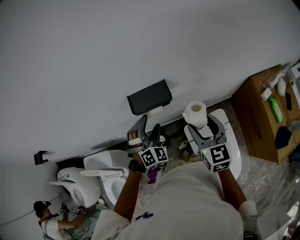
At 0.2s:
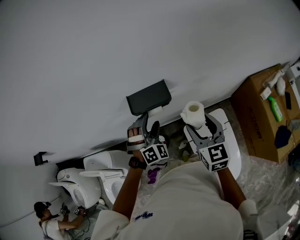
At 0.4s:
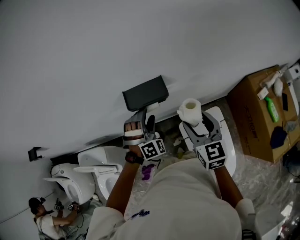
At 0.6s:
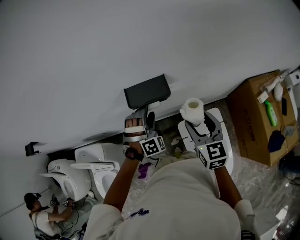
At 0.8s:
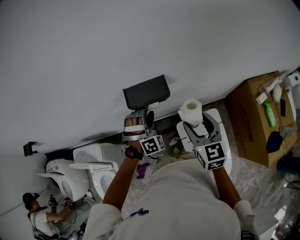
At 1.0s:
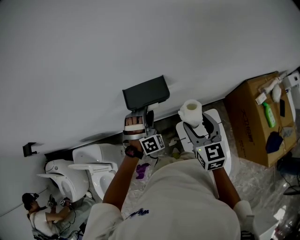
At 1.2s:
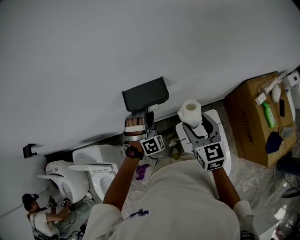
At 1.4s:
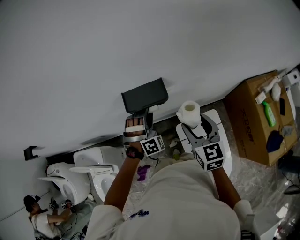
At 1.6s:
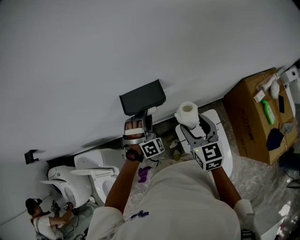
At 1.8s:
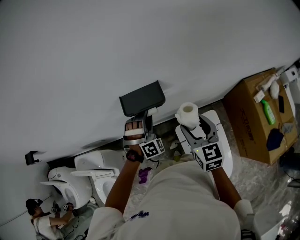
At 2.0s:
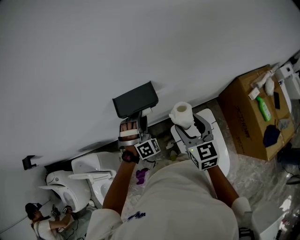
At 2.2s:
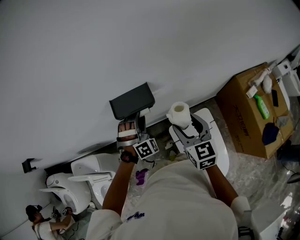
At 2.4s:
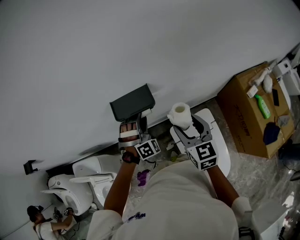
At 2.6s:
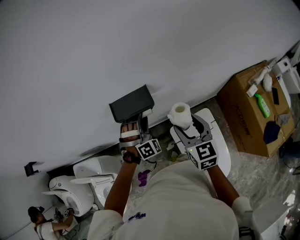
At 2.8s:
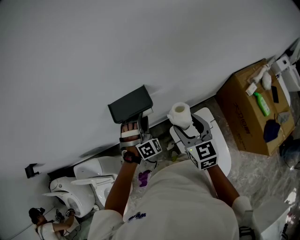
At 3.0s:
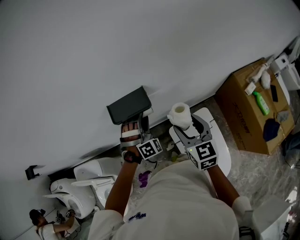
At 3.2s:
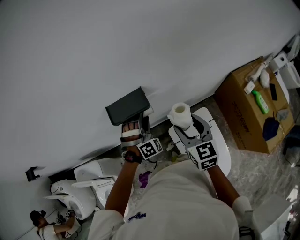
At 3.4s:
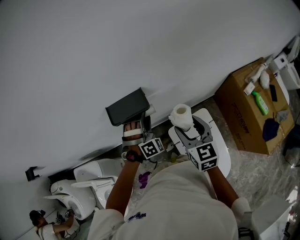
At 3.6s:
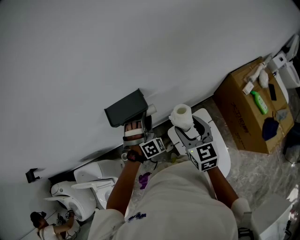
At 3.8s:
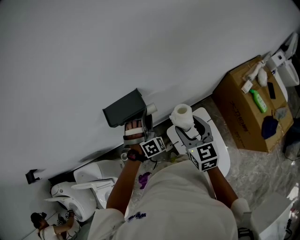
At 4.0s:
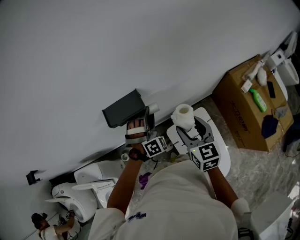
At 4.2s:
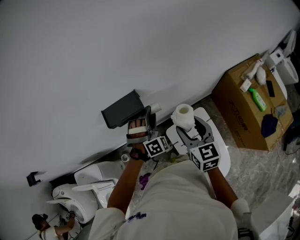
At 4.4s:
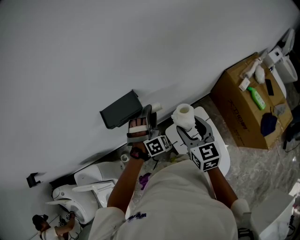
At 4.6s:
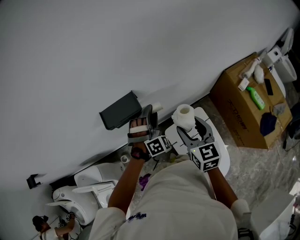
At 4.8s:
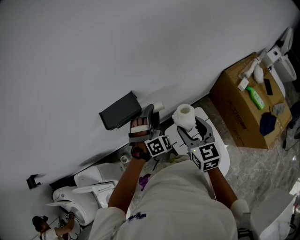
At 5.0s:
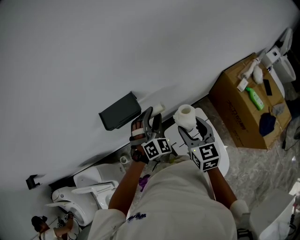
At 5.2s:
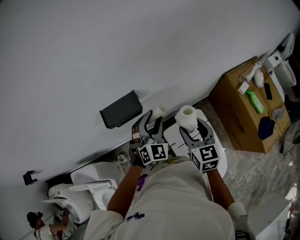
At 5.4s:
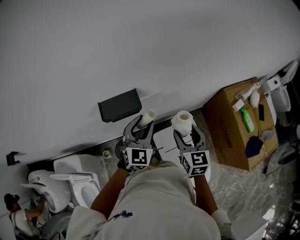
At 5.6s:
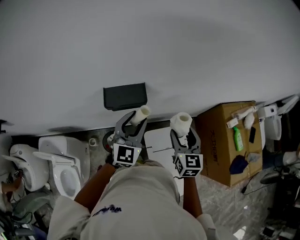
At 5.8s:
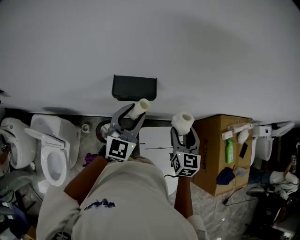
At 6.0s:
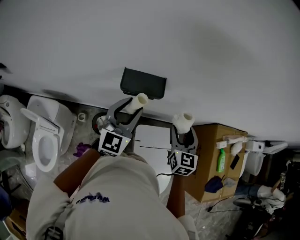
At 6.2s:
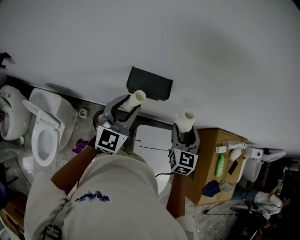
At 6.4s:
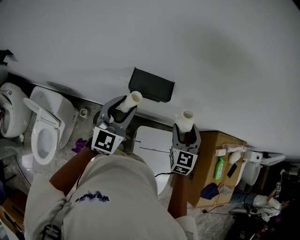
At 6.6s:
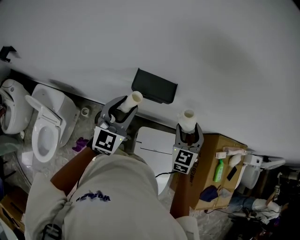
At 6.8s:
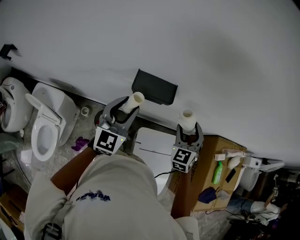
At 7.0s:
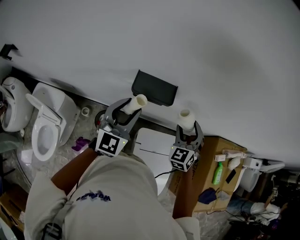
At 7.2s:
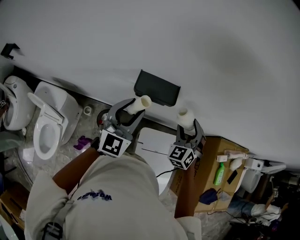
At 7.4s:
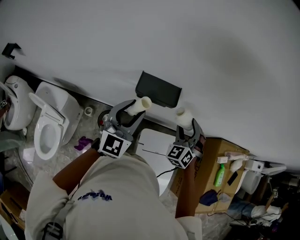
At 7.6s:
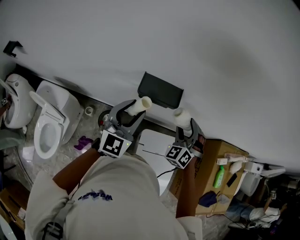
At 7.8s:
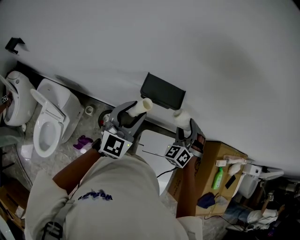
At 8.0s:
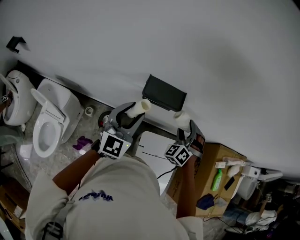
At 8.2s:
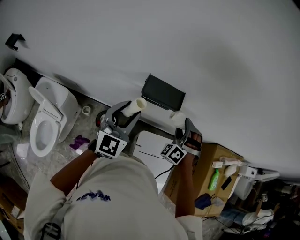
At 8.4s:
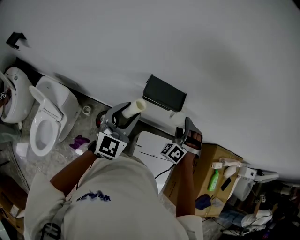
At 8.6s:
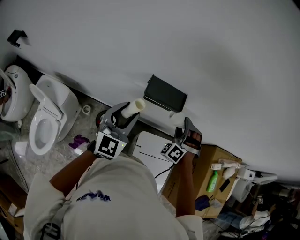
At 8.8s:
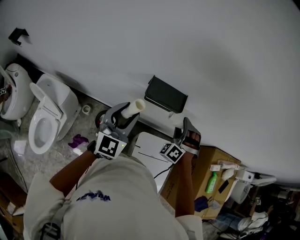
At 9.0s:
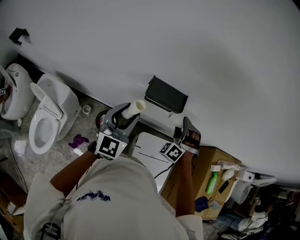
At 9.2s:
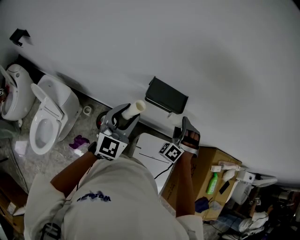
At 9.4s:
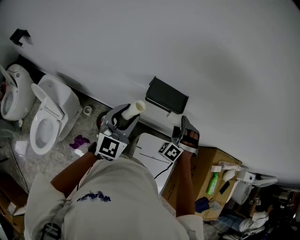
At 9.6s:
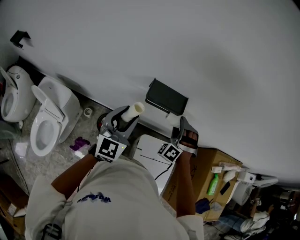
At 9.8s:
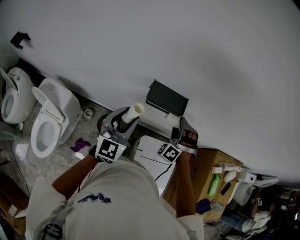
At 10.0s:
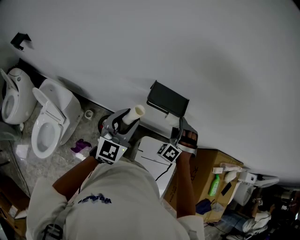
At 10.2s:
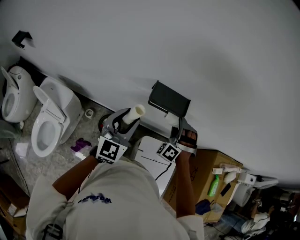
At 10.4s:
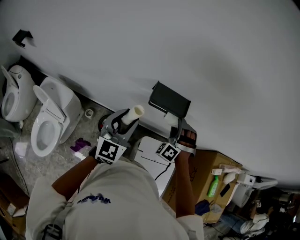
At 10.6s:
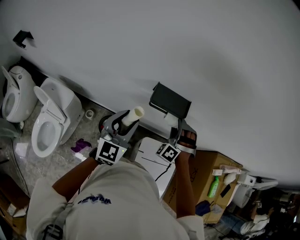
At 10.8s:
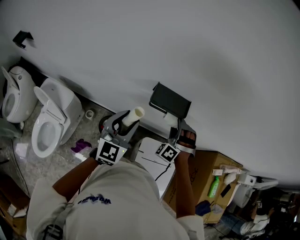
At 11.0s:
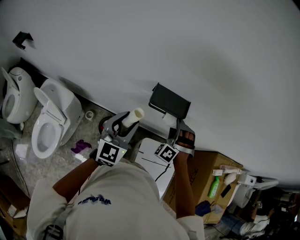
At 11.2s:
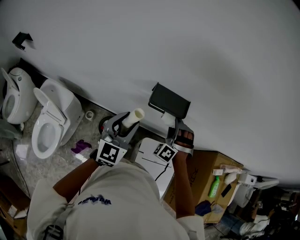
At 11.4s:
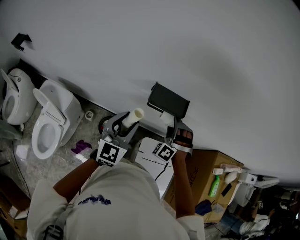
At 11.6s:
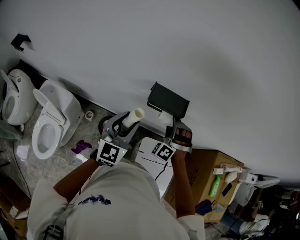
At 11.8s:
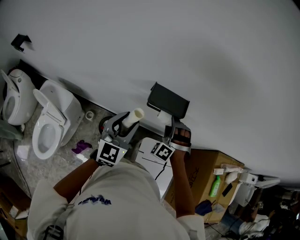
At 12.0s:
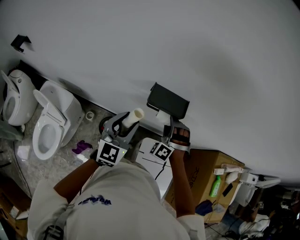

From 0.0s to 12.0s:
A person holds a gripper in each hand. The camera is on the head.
From 0.0s to 1.6s: The left gripper swivels about 20 degrees, and closes.
From 1.6s to 3.0s: There are only small adjustments of the grippers.
From 3.0s to 4.4s: The left gripper goes approximately 10 cm to the right.
From 4.4s to 6.0s: The left gripper heads to the left, upward and backward, covering roughly 15 cm, and rotates around the line of its fingers by some 70 degrees, counterclockwise from behind.
From 6.0s to 7.6s: The right gripper is displaced forward by some 5 cm, and rotates around the line of its fingers by some 60 degrees, counterclockwise from behind.
From 7.6s to 9.0s: The right gripper rotates about 30 degrees.
From 9.0s to 10.4s: There are only small adjustments of the grippers.
From 10.4s to 12.0s: There are only small adjustments of the grippers.

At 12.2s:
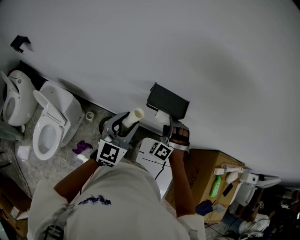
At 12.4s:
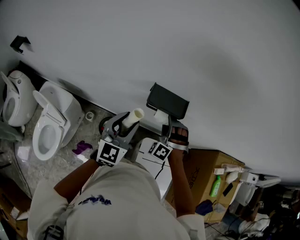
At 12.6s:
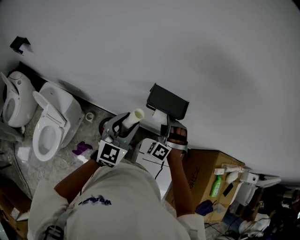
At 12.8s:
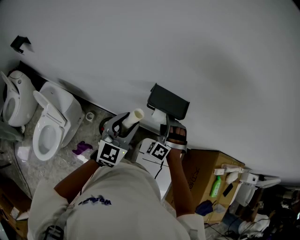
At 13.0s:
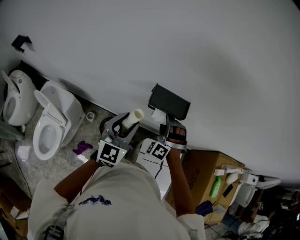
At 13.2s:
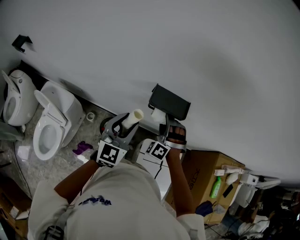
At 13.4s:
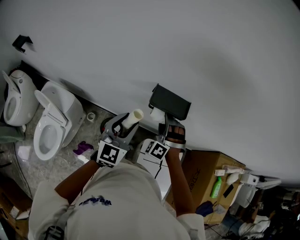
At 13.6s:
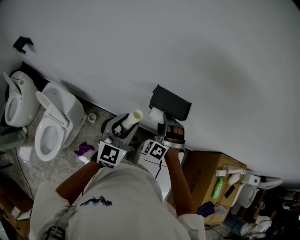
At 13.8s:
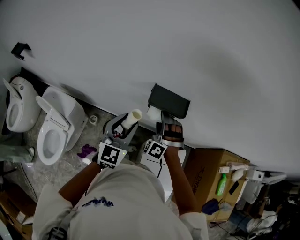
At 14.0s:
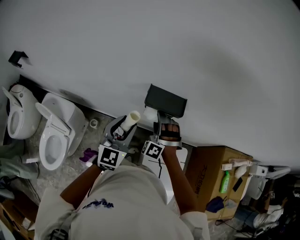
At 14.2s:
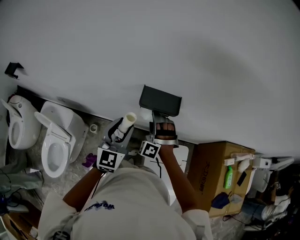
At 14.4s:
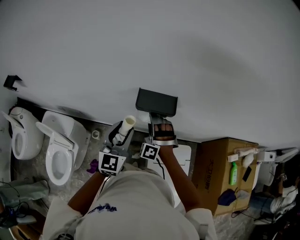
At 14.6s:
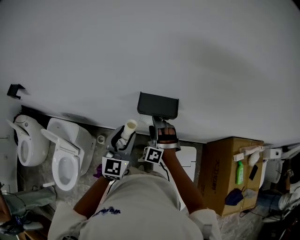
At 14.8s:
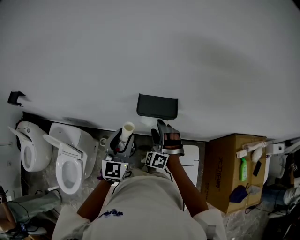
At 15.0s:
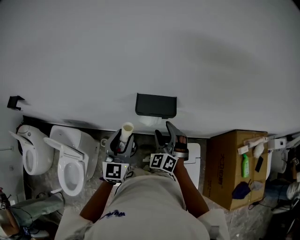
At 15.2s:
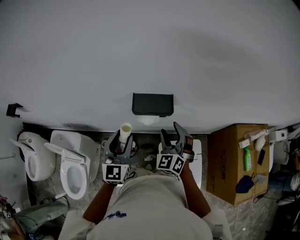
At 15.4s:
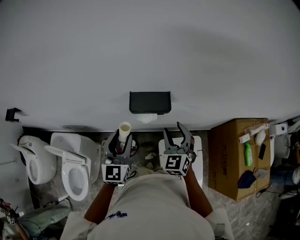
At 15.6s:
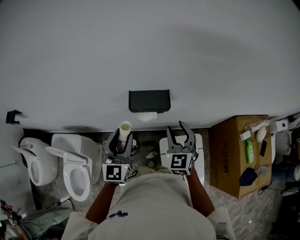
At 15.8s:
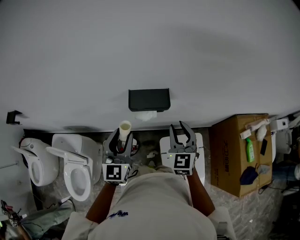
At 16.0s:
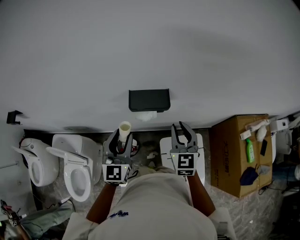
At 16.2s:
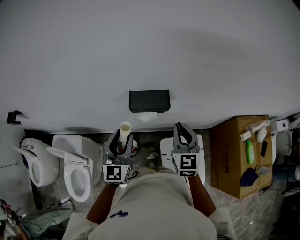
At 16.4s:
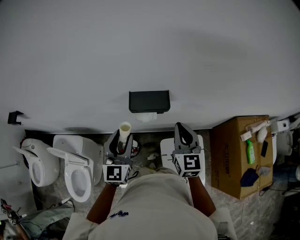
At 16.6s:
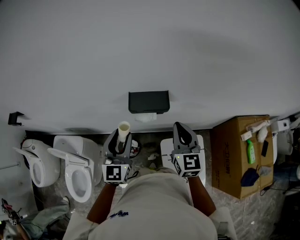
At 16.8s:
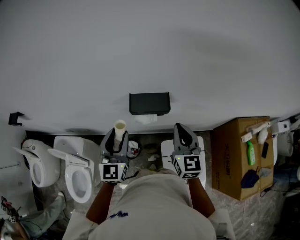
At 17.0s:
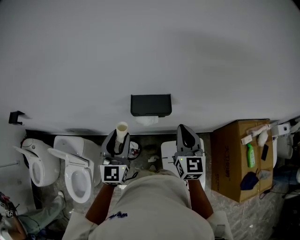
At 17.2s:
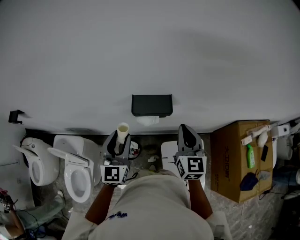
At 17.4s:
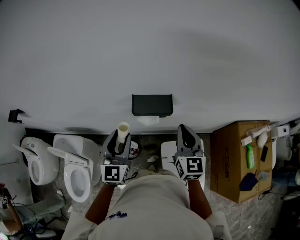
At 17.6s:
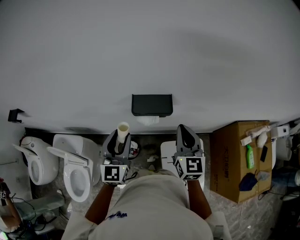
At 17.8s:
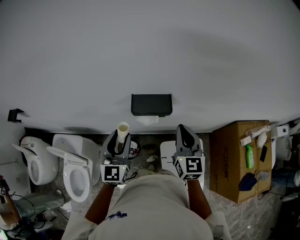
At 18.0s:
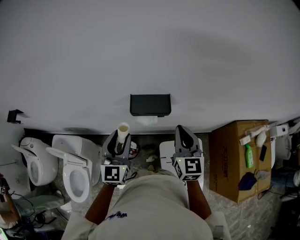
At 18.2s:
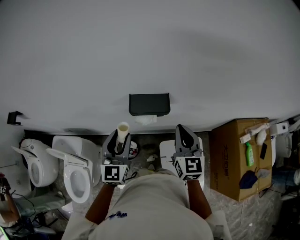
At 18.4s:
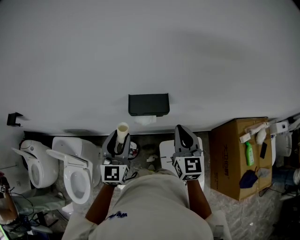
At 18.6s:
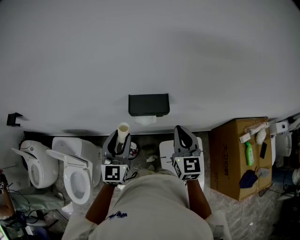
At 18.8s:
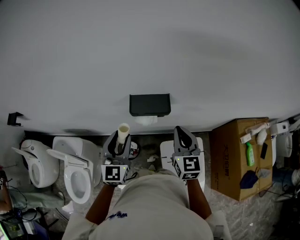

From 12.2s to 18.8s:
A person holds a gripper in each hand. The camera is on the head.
From 12.2s to 13.8s: The right gripper goes roughly 5 cm to the left.
From 13.8s to 15.4s: The right gripper is displaced to the right and upward by roughly 10 cm, and twists about 60 degrees clockwise, seen from behind.
From 15.4s to 17.2s: The right gripper travels upward by roughly 5 cm, changes its angle by about 30 degrees, and closes.
From 17.2s to 18.8s: The grippers stay close to where they were, moving slightly.

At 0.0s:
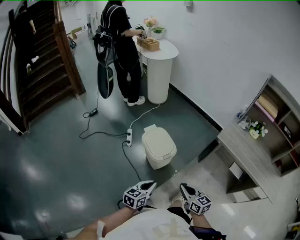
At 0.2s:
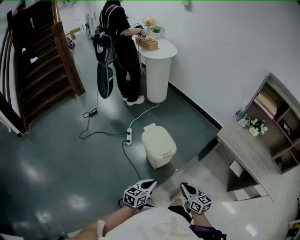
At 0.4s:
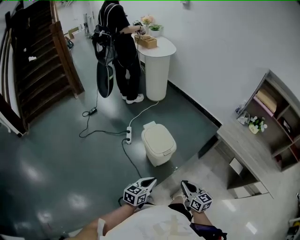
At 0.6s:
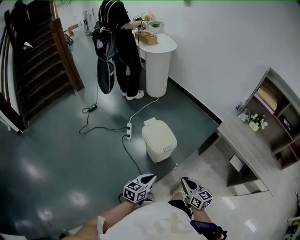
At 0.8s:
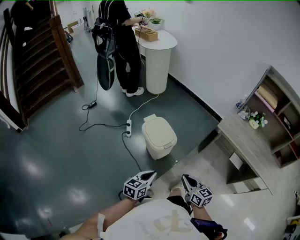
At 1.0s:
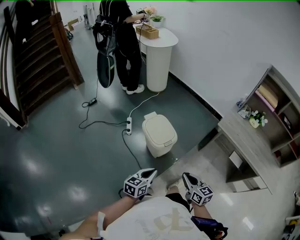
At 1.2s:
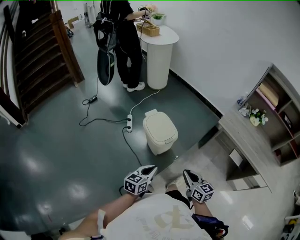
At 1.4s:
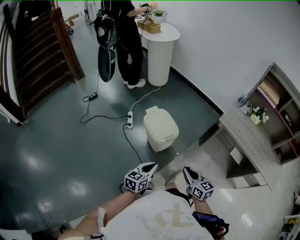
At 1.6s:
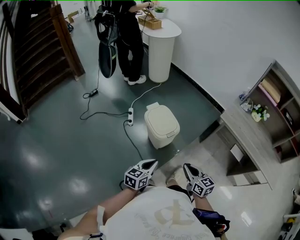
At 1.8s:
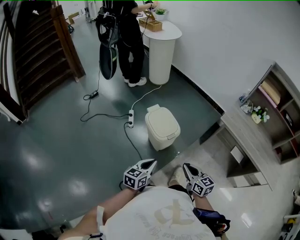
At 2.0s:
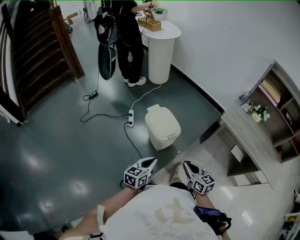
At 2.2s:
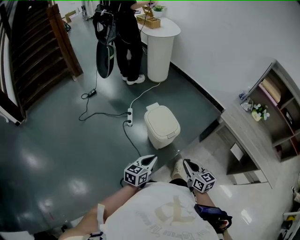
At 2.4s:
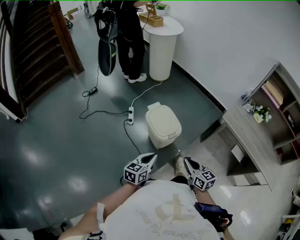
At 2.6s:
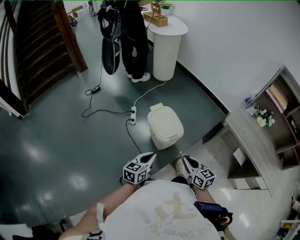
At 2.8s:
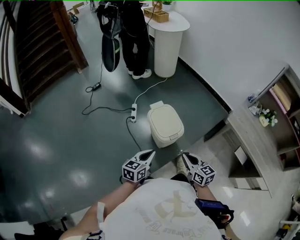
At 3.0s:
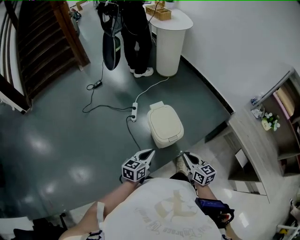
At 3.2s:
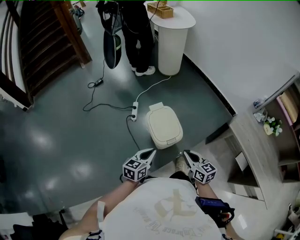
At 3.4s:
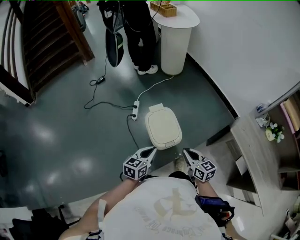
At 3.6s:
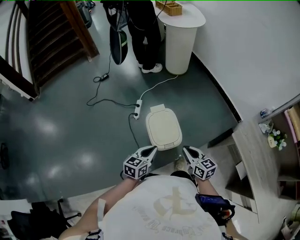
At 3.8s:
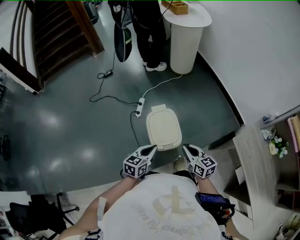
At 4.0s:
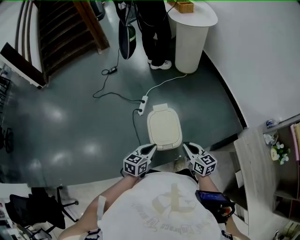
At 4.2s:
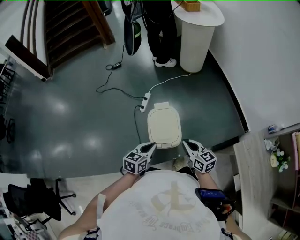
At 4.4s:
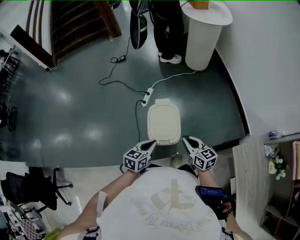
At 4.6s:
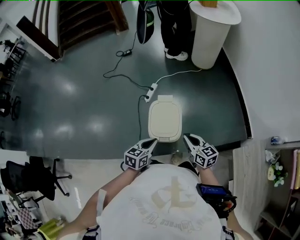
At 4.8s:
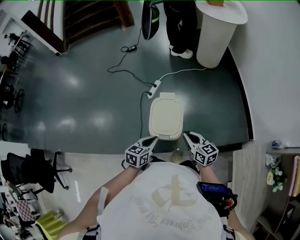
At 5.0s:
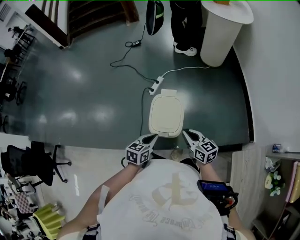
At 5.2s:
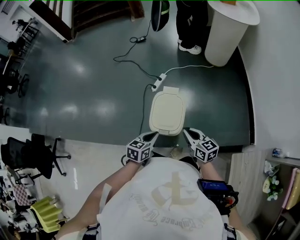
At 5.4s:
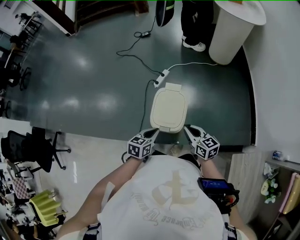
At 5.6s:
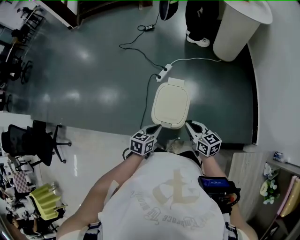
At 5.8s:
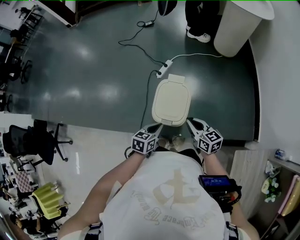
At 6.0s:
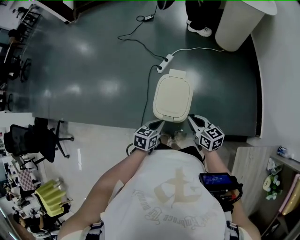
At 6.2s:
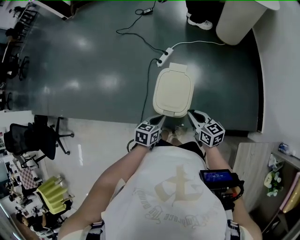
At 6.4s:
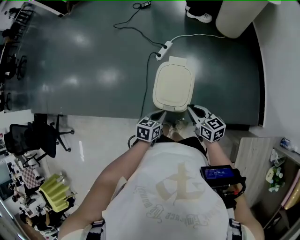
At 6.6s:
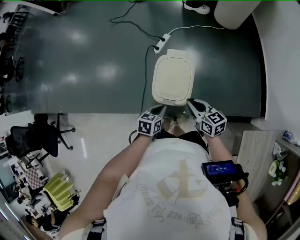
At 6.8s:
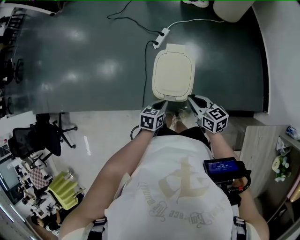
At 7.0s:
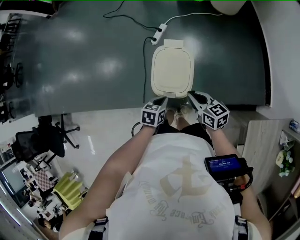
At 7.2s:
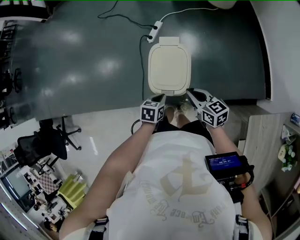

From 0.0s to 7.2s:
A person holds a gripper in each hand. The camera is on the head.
From 0.0s to 1.4s: The grippers stay close to where they were, moving slightly.
From 1.4s to 2.8s: The two grippers go approximately 10 cm forward.
From 2.8s to 4.4s: The right gripper is displaced forward and to the right by some 25 cm, and turns by approximately 30 degrees, while the left gripper heads to the right and forward, covering about 20 cm, and changes its angle by approximately 20 degrees.
From 4.4s to 5.8s: Both grippers travel together downward, roughly 5 cm.
From 5.8s to 7.2s: The right gripper moves downward, about 5 cm, while the left gripper heads downward, covering some 10 cm.
